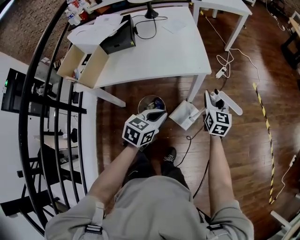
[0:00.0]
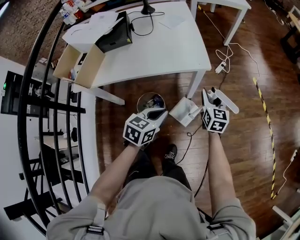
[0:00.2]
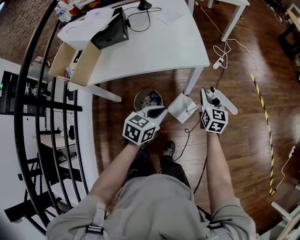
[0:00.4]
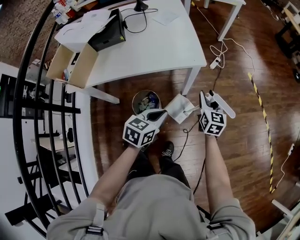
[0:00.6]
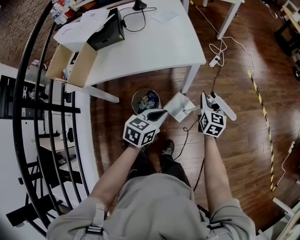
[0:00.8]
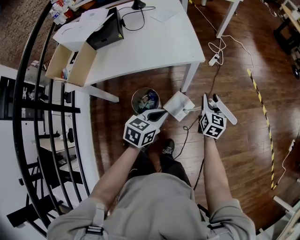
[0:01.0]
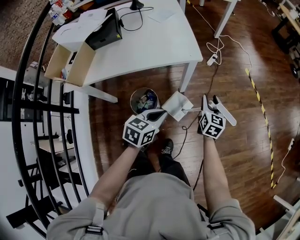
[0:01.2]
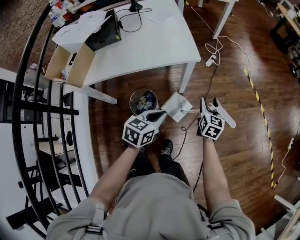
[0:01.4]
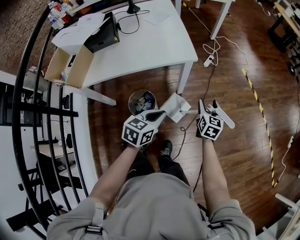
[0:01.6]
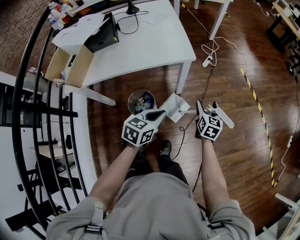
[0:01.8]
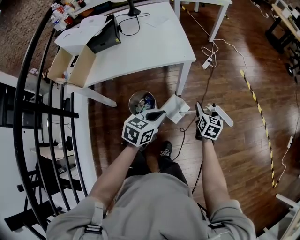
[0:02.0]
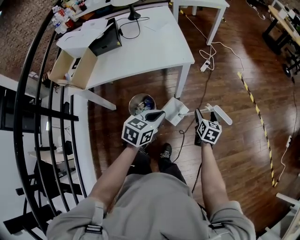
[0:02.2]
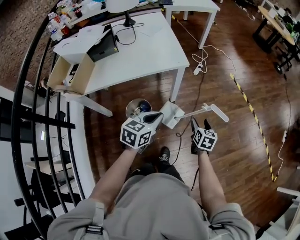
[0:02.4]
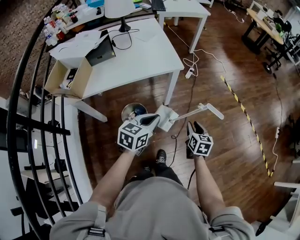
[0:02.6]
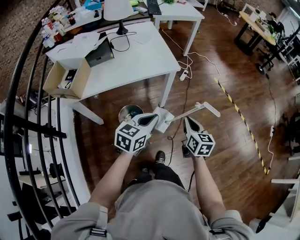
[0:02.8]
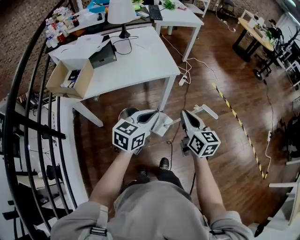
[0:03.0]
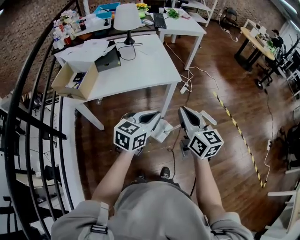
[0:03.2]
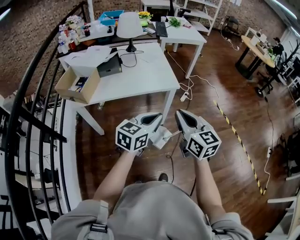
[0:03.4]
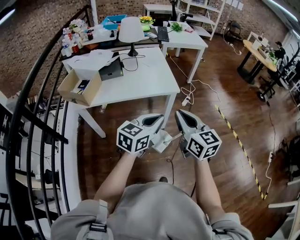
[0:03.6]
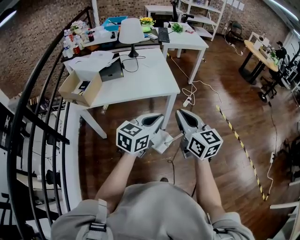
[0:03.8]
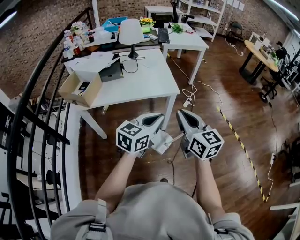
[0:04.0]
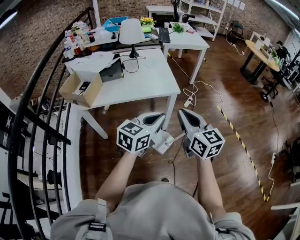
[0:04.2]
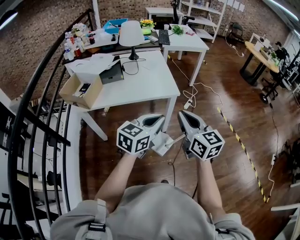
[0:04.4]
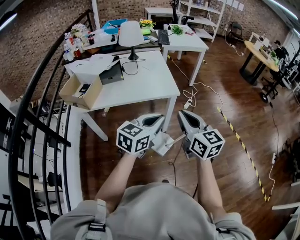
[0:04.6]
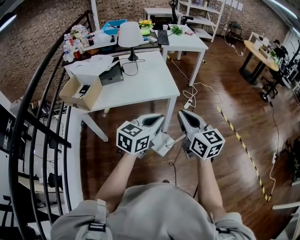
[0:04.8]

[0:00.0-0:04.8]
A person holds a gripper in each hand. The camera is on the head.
0.0 to 1.6 s: The left gripper ends up approximately 5 cm from where it was; the right gripper travels to the right, downward and backward by some 15 cm.
1.6 to 3.2 s: The right gripper shifts some 35 cm upward, backward and to the left, swivels about 30 degrees, and closes its fingers; the left gripper shifts some 20 cm upward and backward, and turns by about 20 degrees.
3.2 to 4.8 s: The left gripper travels upward by approximately 5 cm.

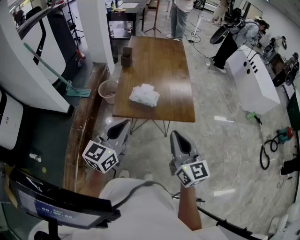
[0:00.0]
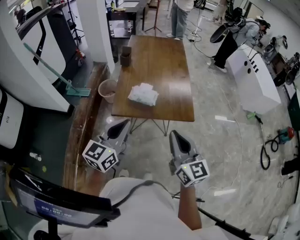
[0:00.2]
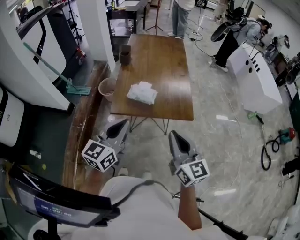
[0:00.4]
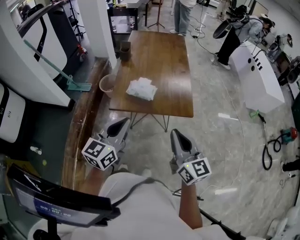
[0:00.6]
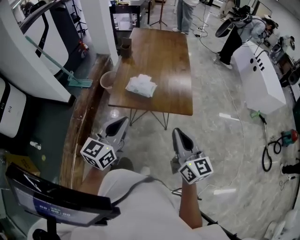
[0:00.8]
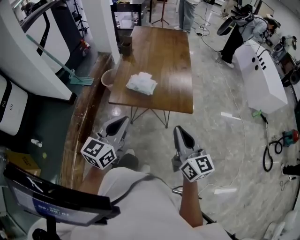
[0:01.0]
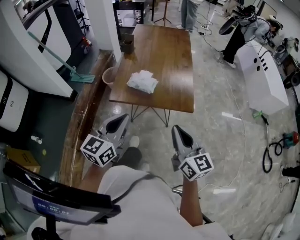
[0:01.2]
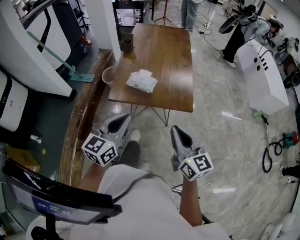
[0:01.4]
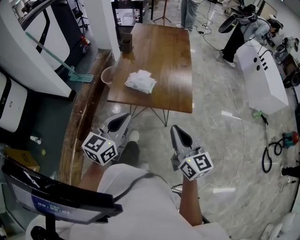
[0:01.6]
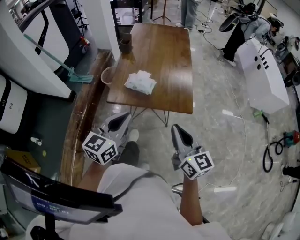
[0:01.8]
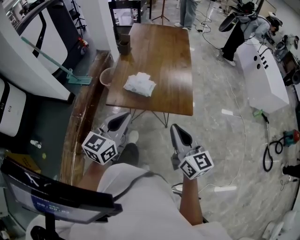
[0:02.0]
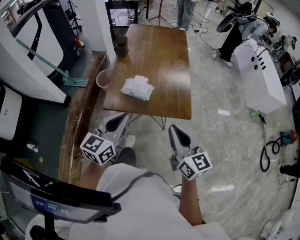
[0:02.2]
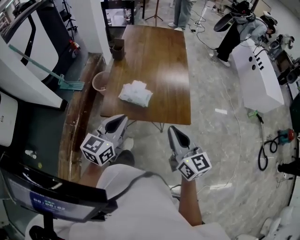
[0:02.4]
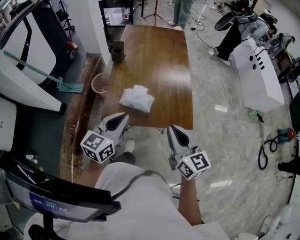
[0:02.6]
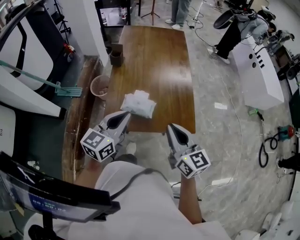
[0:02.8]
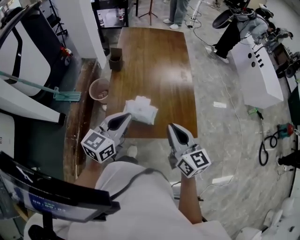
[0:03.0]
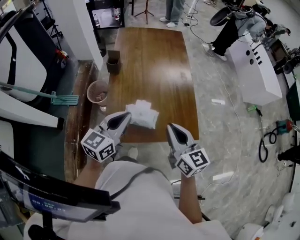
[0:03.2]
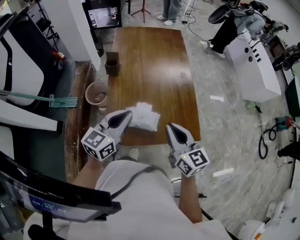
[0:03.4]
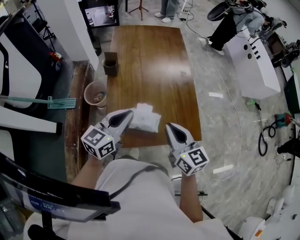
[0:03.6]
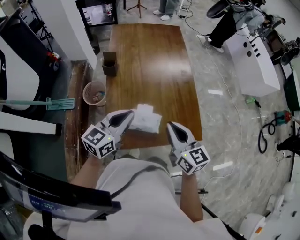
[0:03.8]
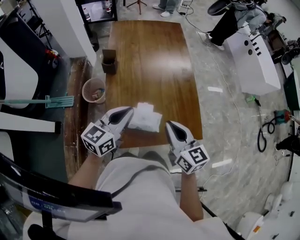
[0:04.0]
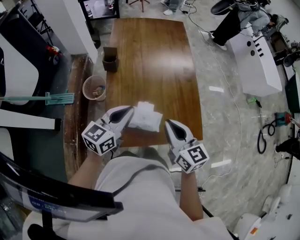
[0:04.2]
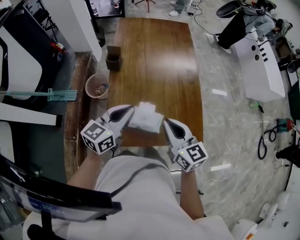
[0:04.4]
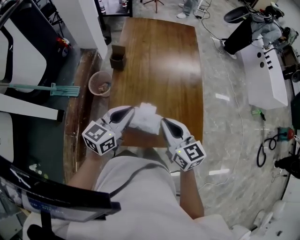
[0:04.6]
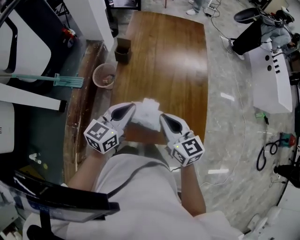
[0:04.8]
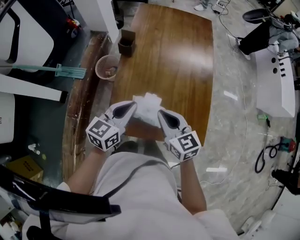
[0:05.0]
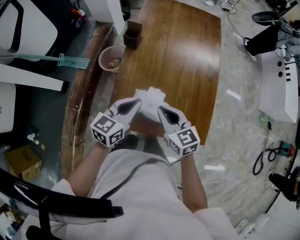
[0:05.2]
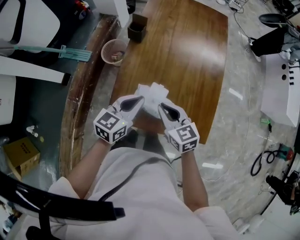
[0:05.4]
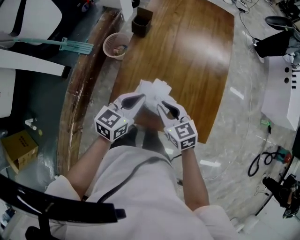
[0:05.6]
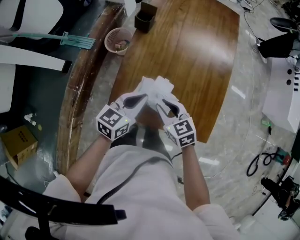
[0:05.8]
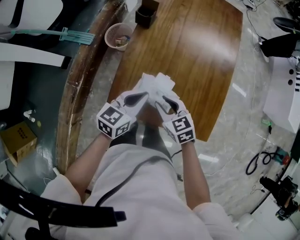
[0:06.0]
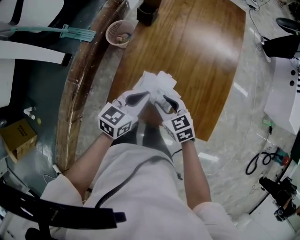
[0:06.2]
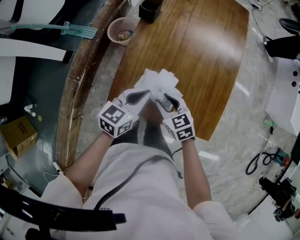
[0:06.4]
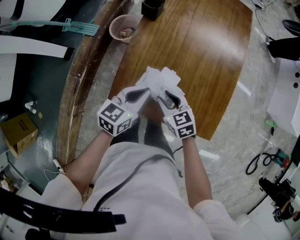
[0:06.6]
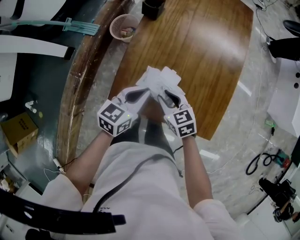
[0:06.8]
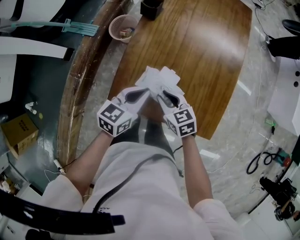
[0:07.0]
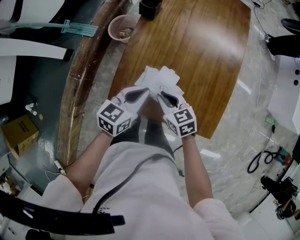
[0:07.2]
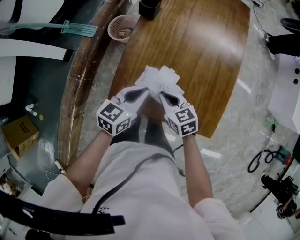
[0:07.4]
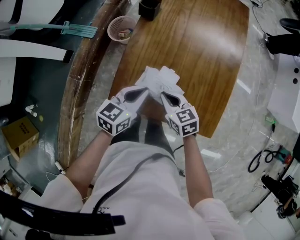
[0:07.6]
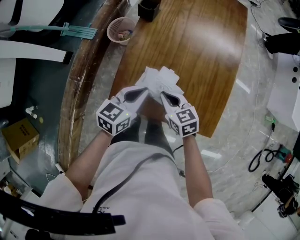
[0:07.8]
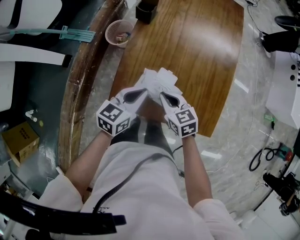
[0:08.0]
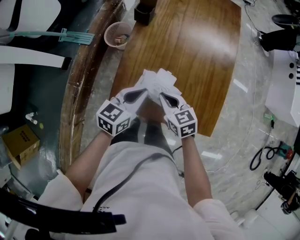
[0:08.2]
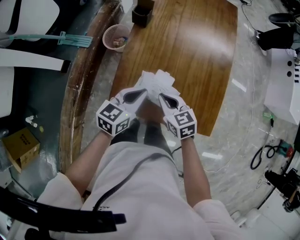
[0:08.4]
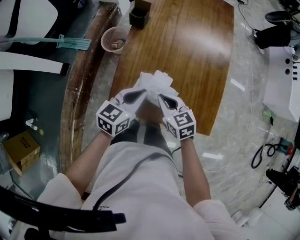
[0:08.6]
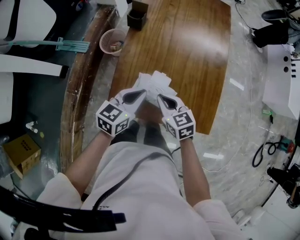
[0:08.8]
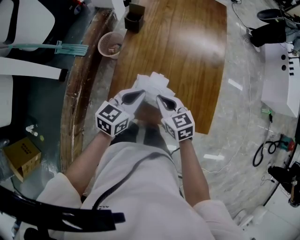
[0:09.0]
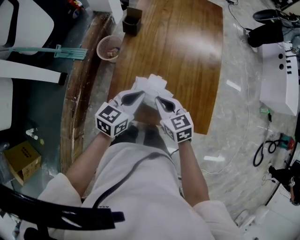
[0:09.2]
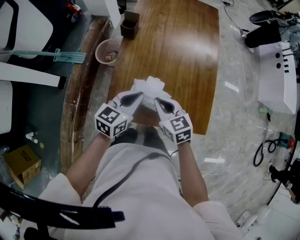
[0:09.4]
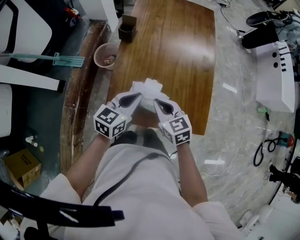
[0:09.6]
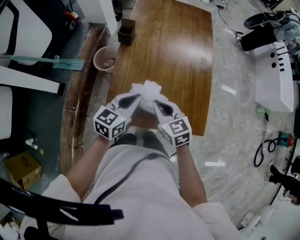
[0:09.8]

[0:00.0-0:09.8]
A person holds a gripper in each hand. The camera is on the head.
0.0 to 1.4 s: The grippers both shift to the right by roughly 5 cm.
1.4 to 2.8 s: The grippers both shift forward by about 20 cm.
2.8 to 4.2 s: The left gripper shifts some 15 cm forward, while the right gripper shifts some 15 cm forward and to the left.
4.2 to 5.6 s: The grippers both shift downward by about 10 cm. The right gripper turns by approximately 40 degrees.
5.6 to 7.0 s: The right gripper heads downward, covering some 10 cm.
7.0 to 8.4 s: The right gripper closes.
8.4 to 9.8 s: The right gripper is displaced upward by approximately 5 cm.

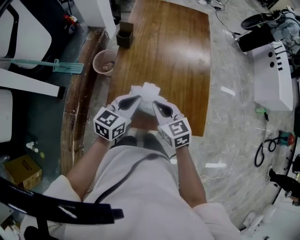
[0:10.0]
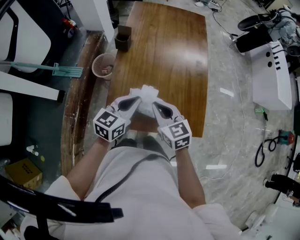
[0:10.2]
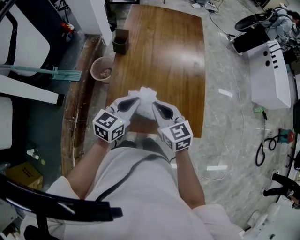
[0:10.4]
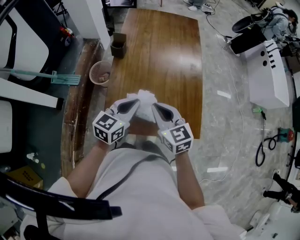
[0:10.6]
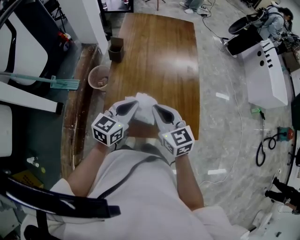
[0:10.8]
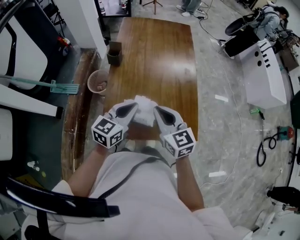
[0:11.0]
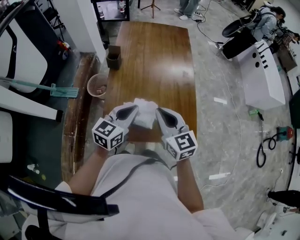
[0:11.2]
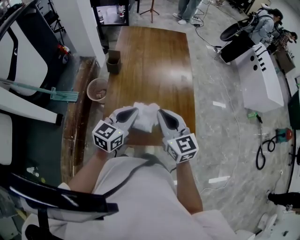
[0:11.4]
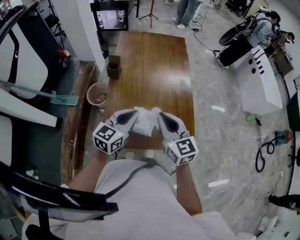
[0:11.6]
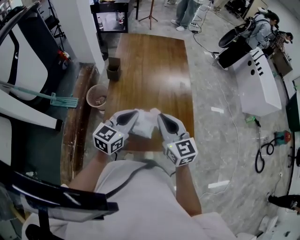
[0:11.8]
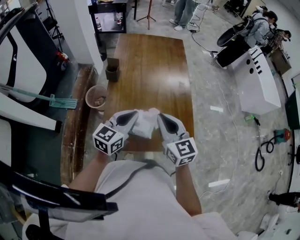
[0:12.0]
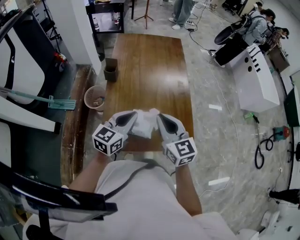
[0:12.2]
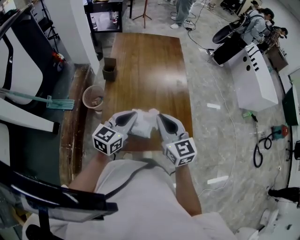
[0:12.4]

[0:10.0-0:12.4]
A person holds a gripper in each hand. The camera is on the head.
10.0 to 11.2 s: The left gripper is displaced upward by approximately 5 cm; the right gripper is displaced upward and to the right by roughly 10 cm.
11.2 to 12.4 s: There are only small adjustments of the grippers.

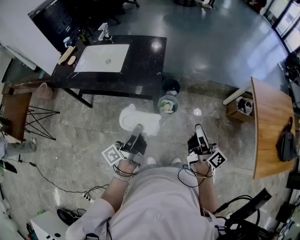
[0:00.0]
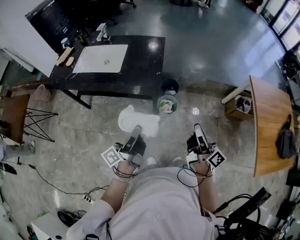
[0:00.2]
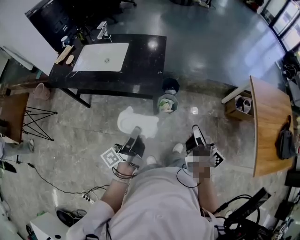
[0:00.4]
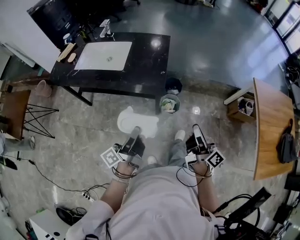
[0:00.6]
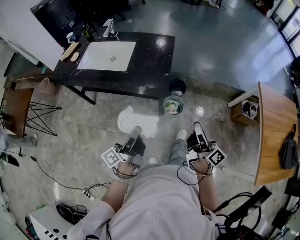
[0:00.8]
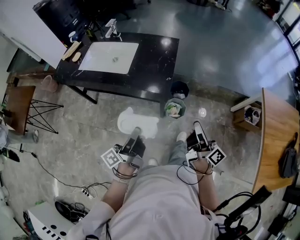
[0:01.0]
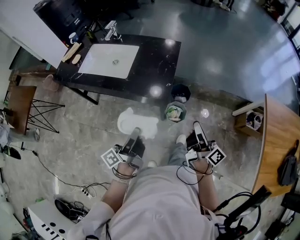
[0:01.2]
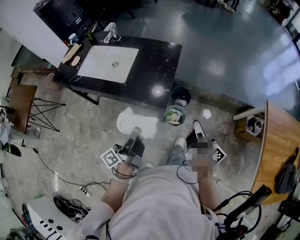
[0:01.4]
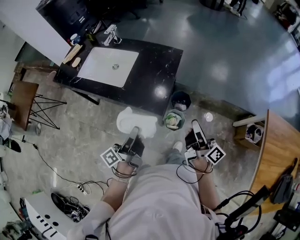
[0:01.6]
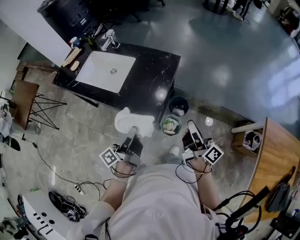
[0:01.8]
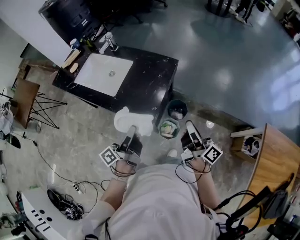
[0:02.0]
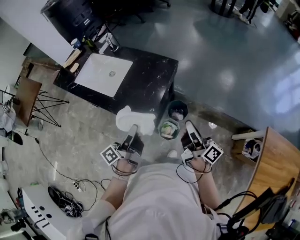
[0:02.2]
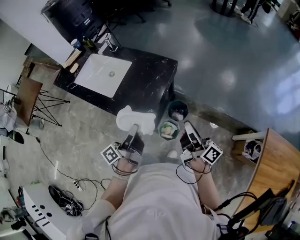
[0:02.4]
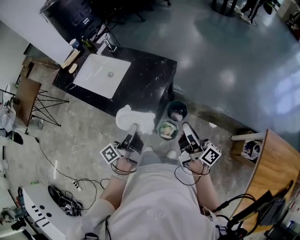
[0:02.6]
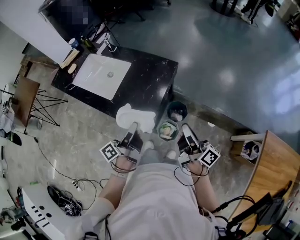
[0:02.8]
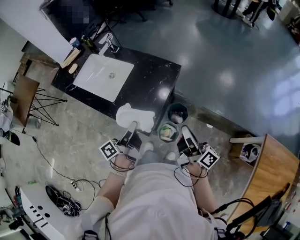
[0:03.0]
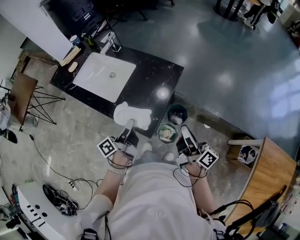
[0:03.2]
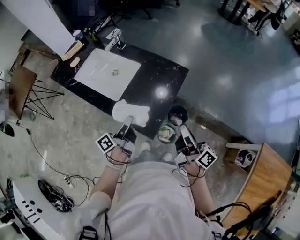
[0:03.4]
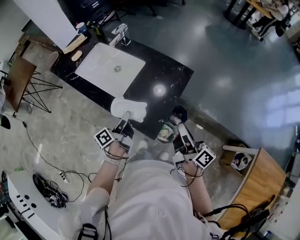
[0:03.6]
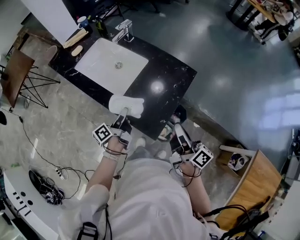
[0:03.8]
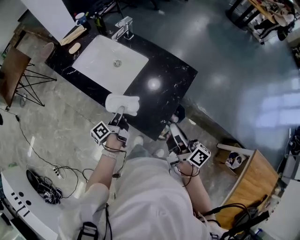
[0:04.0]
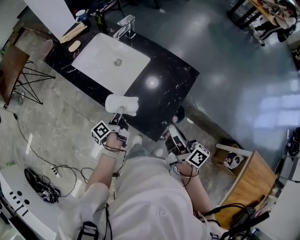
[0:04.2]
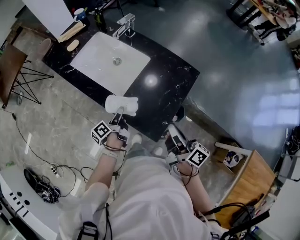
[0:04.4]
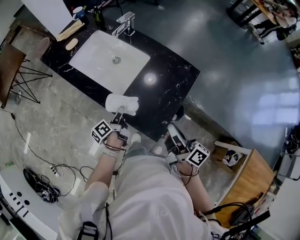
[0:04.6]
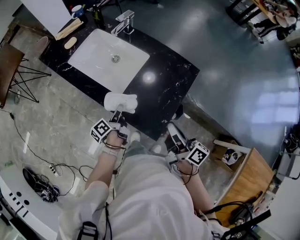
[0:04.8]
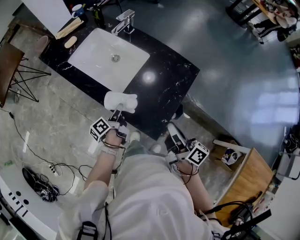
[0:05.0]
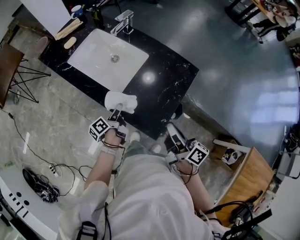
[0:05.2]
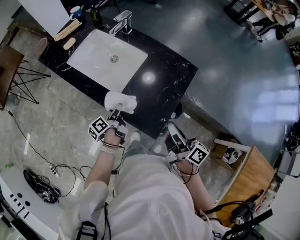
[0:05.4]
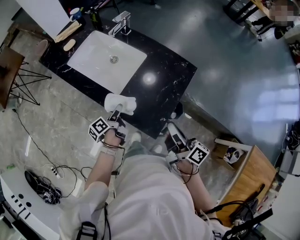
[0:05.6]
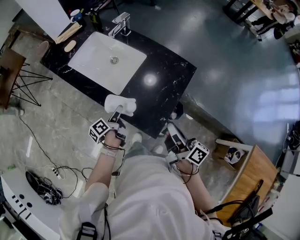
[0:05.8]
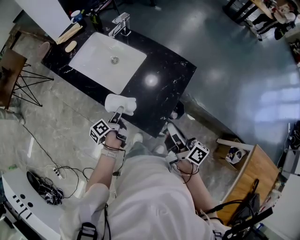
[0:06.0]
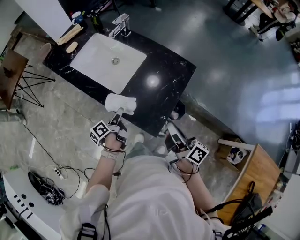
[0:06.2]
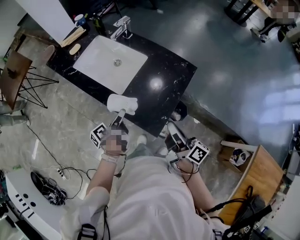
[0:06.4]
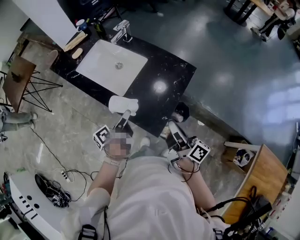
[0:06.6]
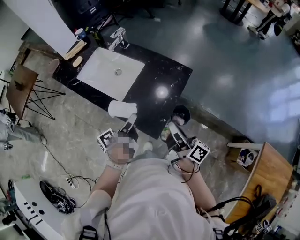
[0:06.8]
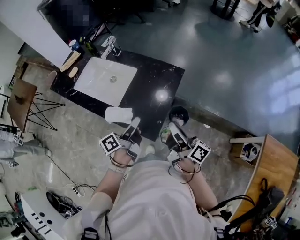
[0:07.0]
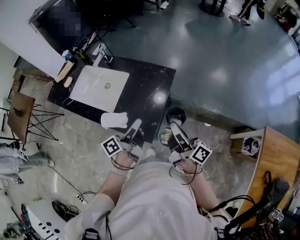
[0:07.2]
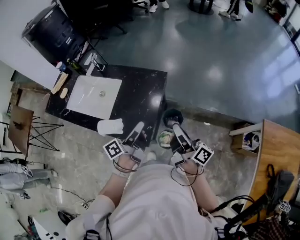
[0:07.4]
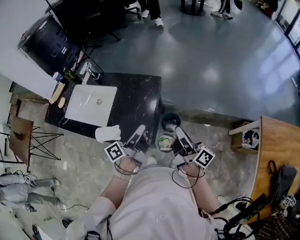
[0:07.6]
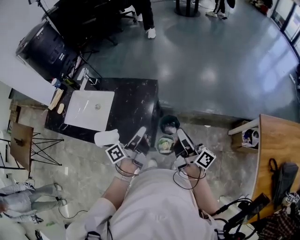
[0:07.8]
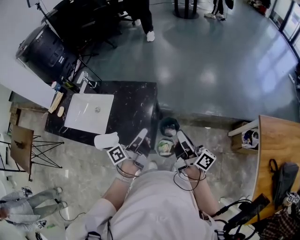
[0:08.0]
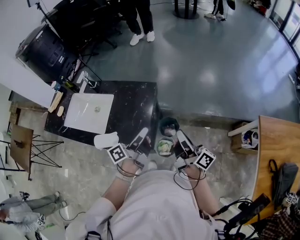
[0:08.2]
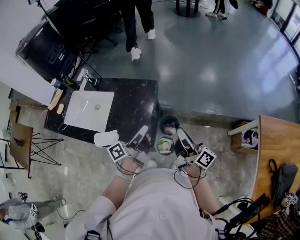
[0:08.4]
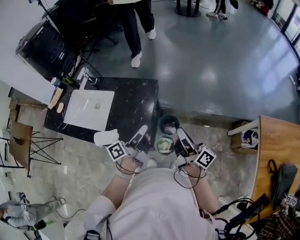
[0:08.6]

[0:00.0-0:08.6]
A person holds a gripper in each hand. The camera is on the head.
0.0 to 1.4 s: The right gripper shifts by some 20 cm.
1.4 to 2.8 s: The right gripper changes place by about 15 cm.
2.8 to 4.4 s: The right gripper changes place by some 20 cm.
5.8 to 7.2 s: The right gripper changes place by roughly 10 cm.
7.2 to 8.6 s: The right gripper ends up approximately 10 cm from where it was.
